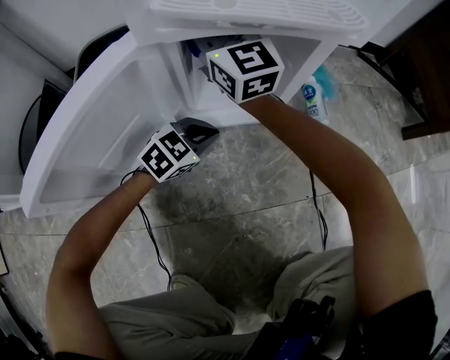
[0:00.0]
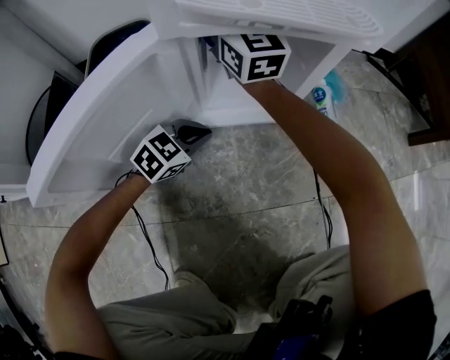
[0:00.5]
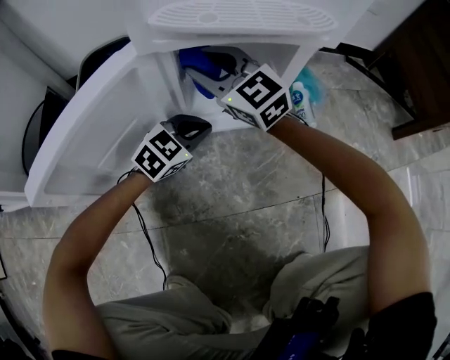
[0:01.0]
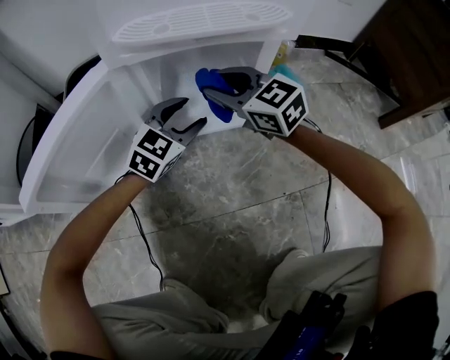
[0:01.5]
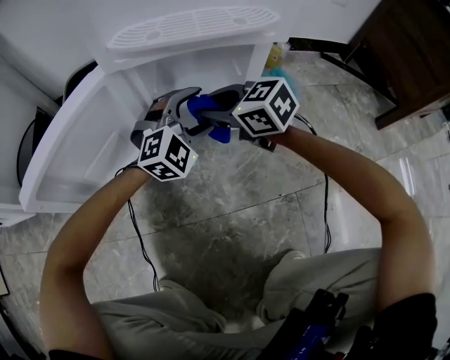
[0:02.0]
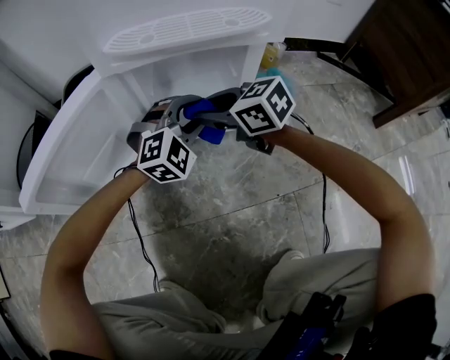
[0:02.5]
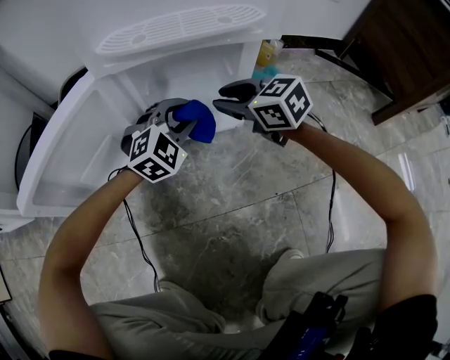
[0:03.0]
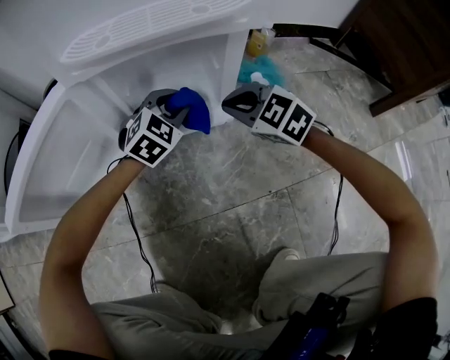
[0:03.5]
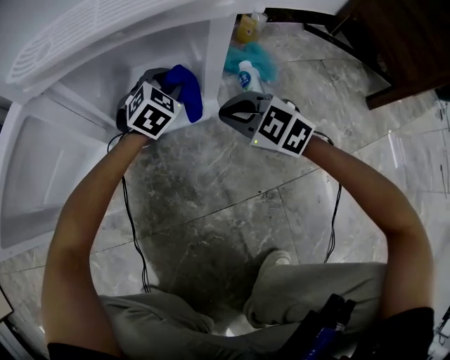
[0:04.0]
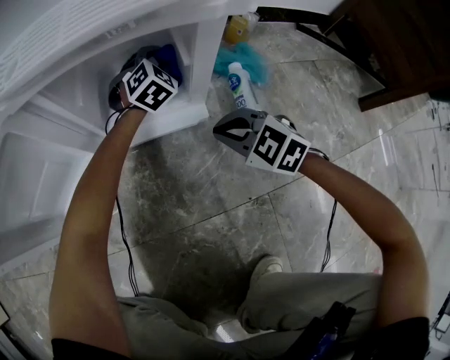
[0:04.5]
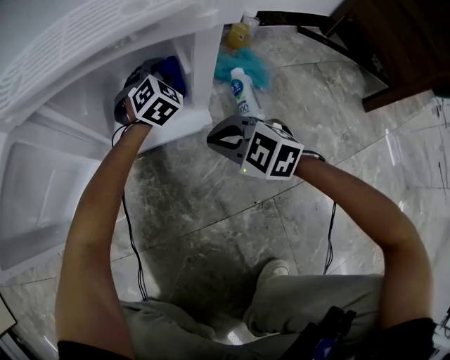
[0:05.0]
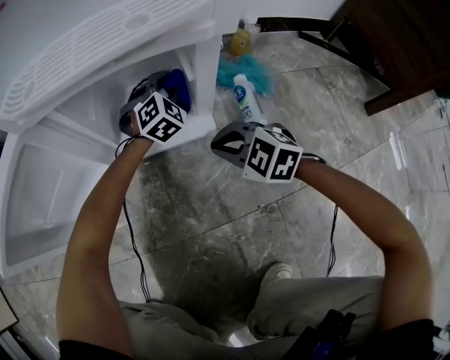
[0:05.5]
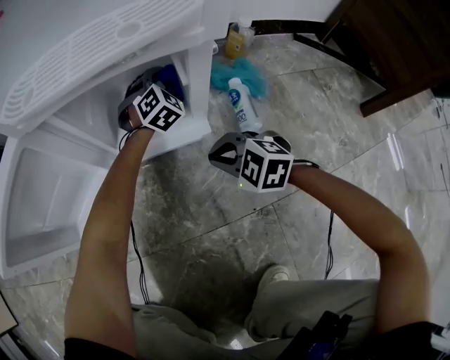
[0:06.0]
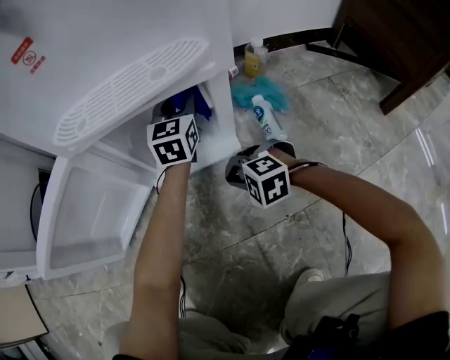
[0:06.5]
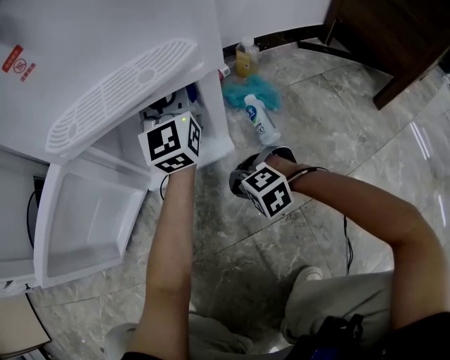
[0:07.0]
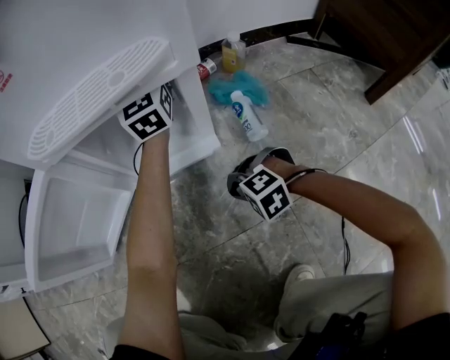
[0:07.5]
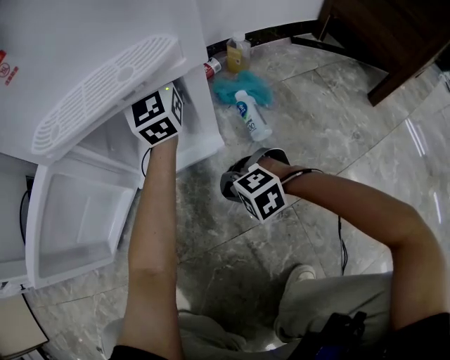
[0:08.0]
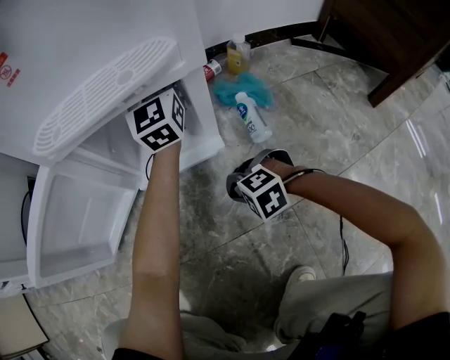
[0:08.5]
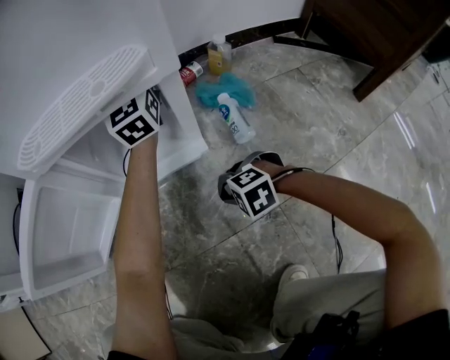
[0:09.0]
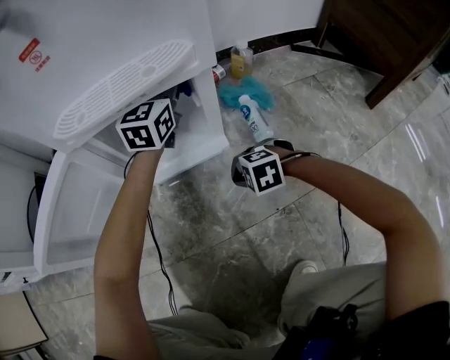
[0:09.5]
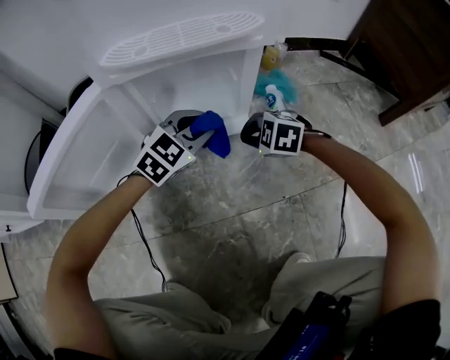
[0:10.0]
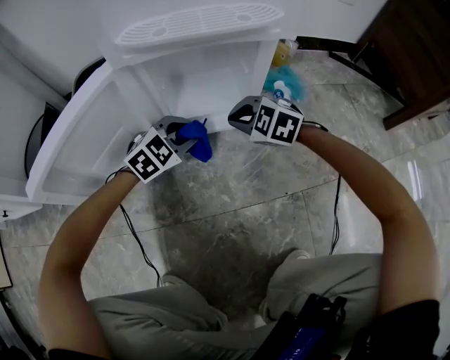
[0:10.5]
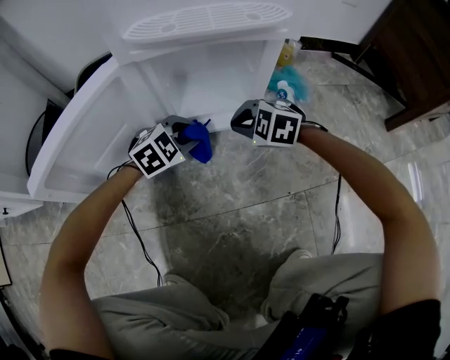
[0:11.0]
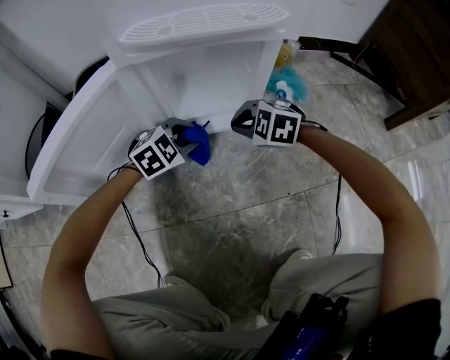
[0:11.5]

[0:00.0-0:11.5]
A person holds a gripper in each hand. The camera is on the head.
0:00.0 to 0:02.0: The right gripper changes place by some 20 cm, and tips its fingers downward by about 40 degrees. The left gripper heads upward, covering some 10 cm, rotates approximately 40 degrees, and opens up.
0:02.0 to 0:04.0: The left gripper goes about 15 cm forward, downward and to the right, swivels roughly 30 degrees, and closes its fingers; the right gripper moves to the right and downward, approximately 15 cm, swivels about 30 degrees, and closes its fingers.
0:04.0 to 0:06.0: The right gripper moves about 5 cm, while the left gripper travels forward by some 10 cm.
0:06.0 to 0:07.5: The right gripper shifts some 5 cm backward, and turns by approximately 30 degrees. Meanwhile the left gripper travels upward by about 25 cm, and tilts its fingers approximately 40 degrees upward.
0:07.5 to 0:09.5: The left gripper heads backward, covering roughly 5 cm, and rotates approximately 30 degrees.
0:09.5 to 0:11.5: The left gripper shifts approximately 30 cm downward, backward and to the left, and angles its fingers downward, by some 40 degrees, while the right gripper shifts approximately 10 cm forward, to the left and upward.

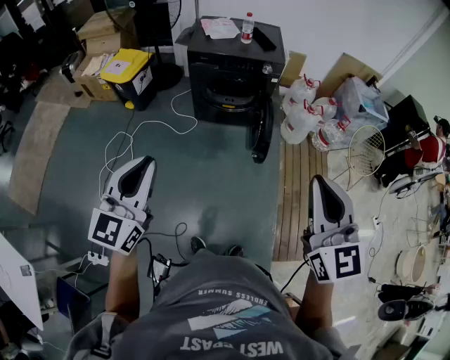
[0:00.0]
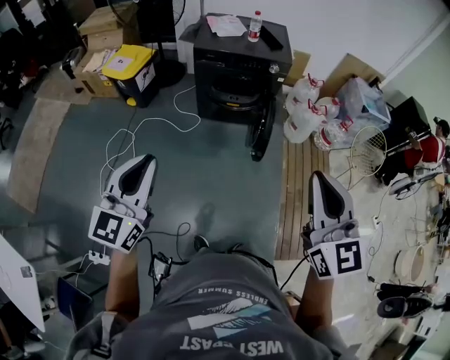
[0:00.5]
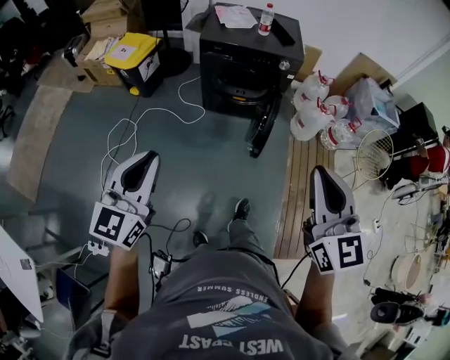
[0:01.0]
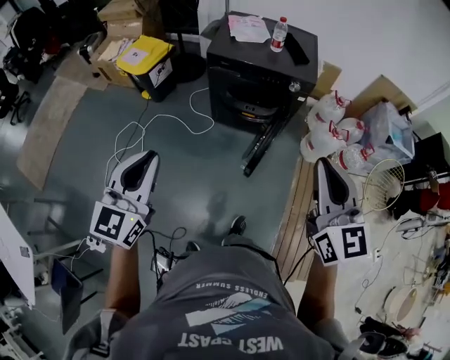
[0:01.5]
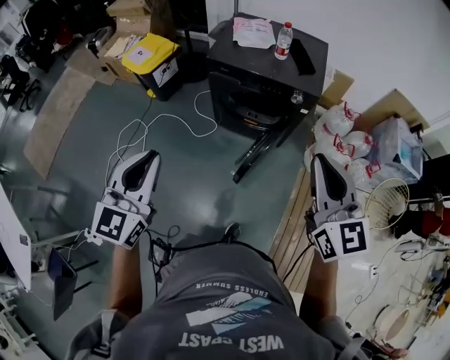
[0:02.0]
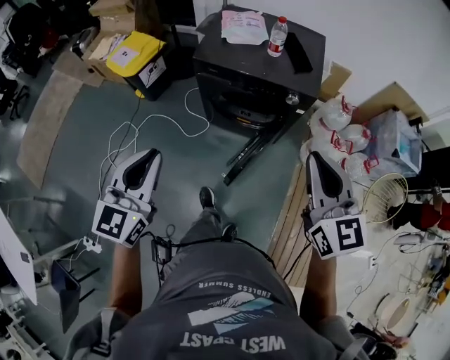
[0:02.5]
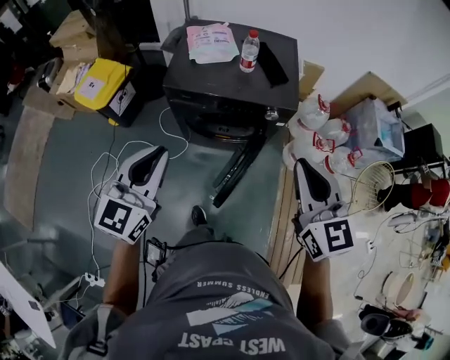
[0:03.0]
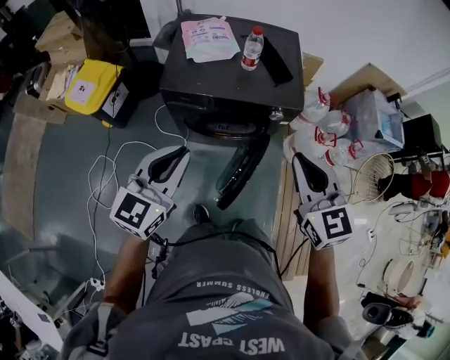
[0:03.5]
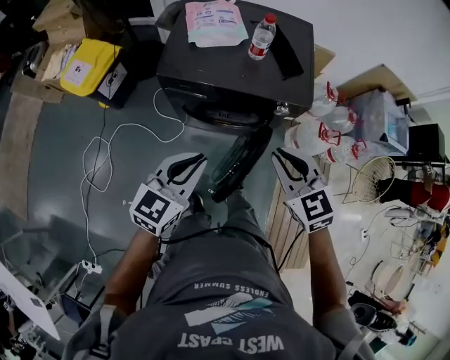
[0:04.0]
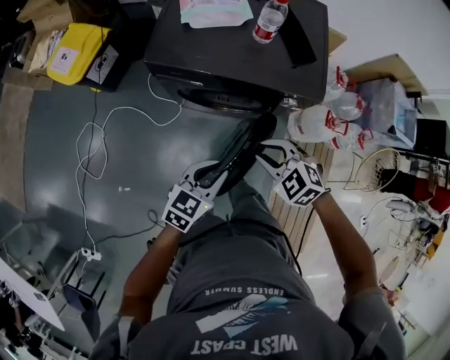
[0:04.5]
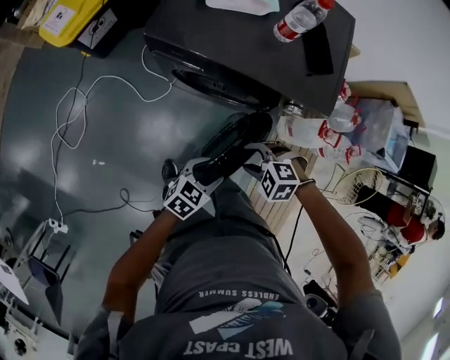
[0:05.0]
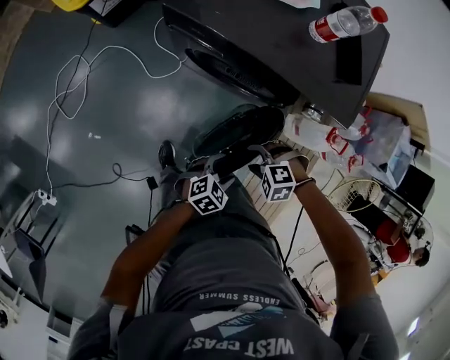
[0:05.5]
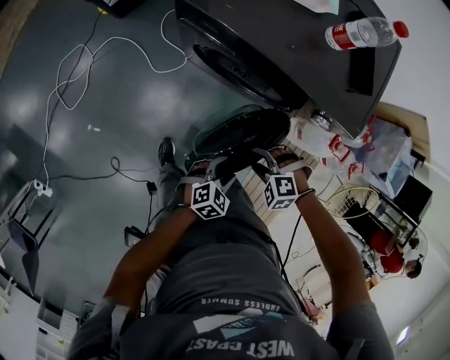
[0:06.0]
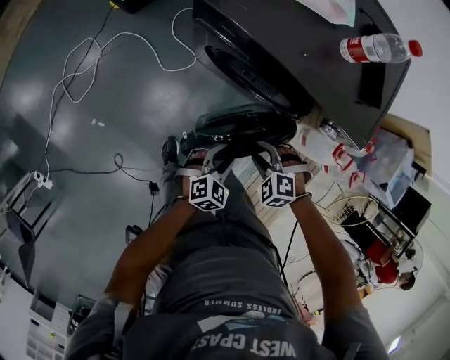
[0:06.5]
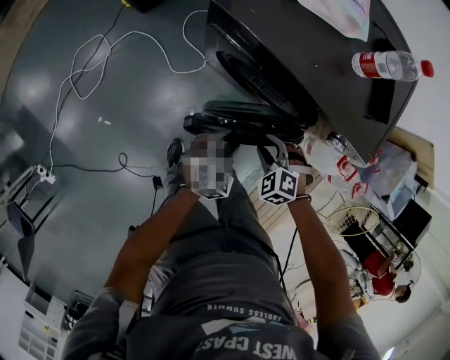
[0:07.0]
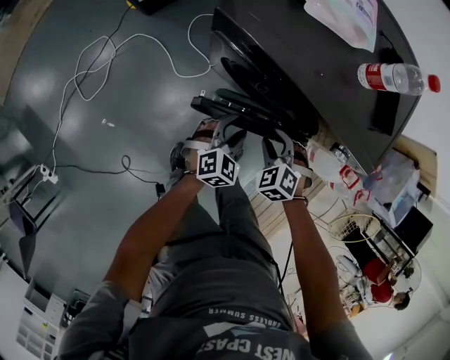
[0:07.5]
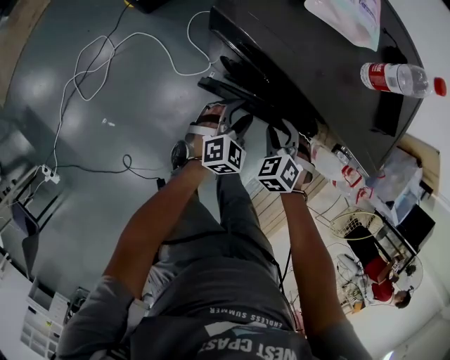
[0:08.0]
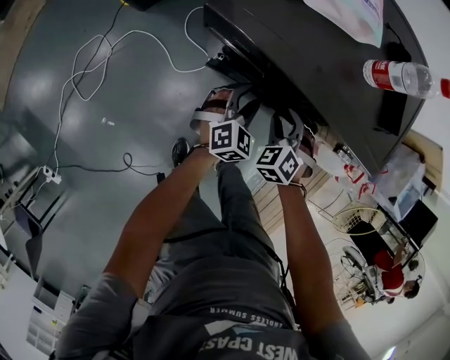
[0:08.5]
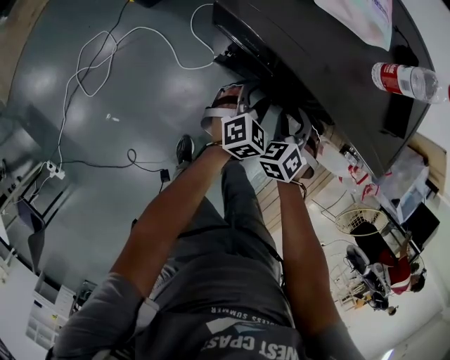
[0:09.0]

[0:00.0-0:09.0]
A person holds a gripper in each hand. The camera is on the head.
0:00.0 to 0:02.0: The left gripper goes some 20 cm forward; the right gripper moves forward, roughly 35 cm.
0:02.0 to 0:04.5: The right gripper heads downward and forward, covering about 40 cm, and tips its fingers downward by roughly 50 degrees. The left gripper moves downward, forward and to the right, roughly 40 cm, and swivels roughly 50 degrees.
0:04.5 to 0:07.0: The grippers both shift downward by about 20 cm. The left gripper turns by approximately 30 degrees, and opens, while the right gripper swivels some 30 degrees.
0:07.0 to 0:09.0: Both grippers travel together forward, roughly 15 cm. The right gripper rotates about 40 degrees.

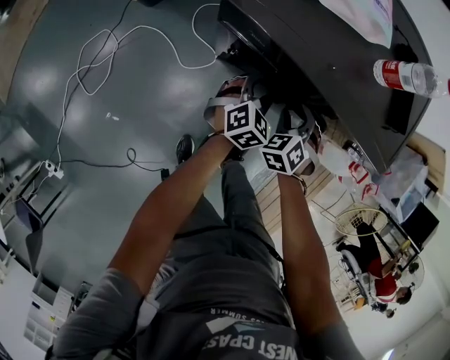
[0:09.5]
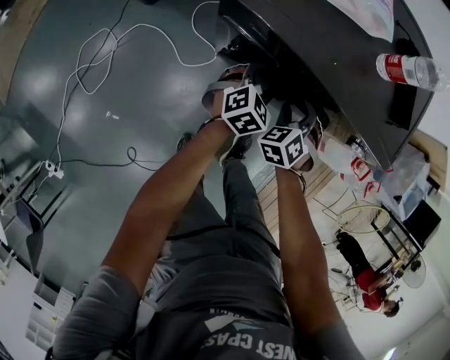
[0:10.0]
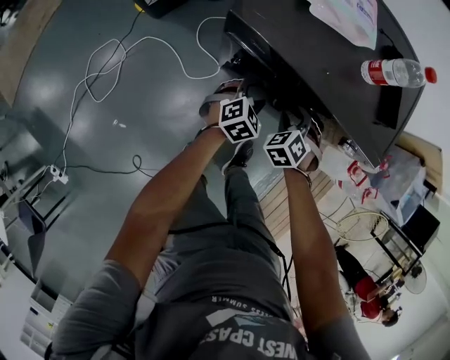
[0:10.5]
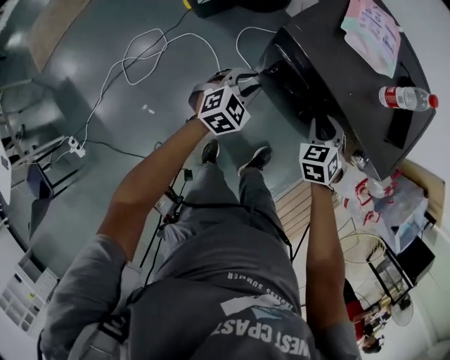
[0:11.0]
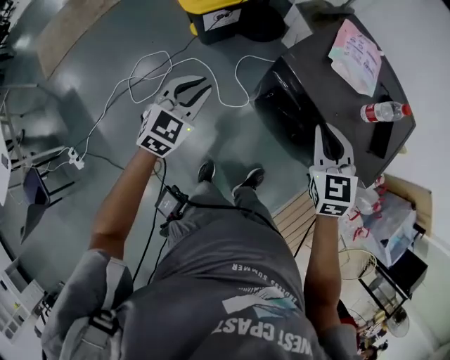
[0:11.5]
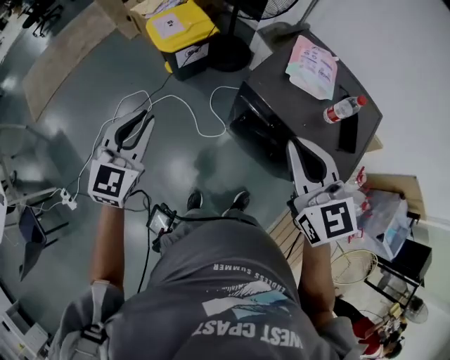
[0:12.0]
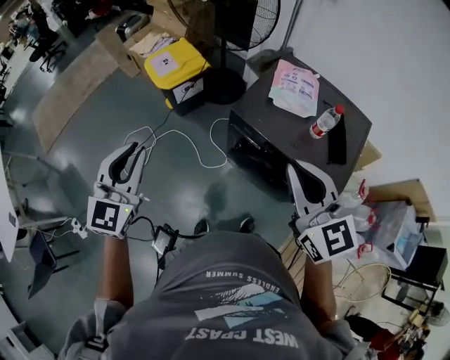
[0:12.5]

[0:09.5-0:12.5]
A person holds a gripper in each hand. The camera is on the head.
0:09.5 to 0:11.0: The right gripper goes some 10 cm upward, while the left gripper goes approximately 20 cm to the left, upward and backward, and closes its fingers.
0:11.0 to 0:12.5: Both grippers travel together upward, some 35 cm. The right gripper points its fingers some 40 degrees further upward, and closes its fingers, while the left gripper tilts its fingers some 30 degrees upward.

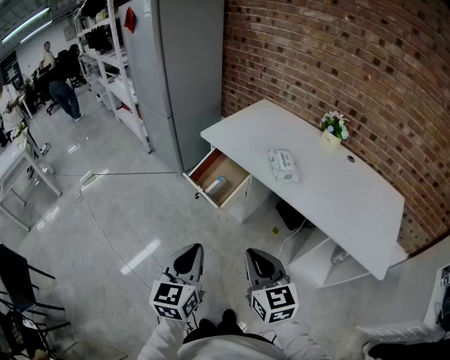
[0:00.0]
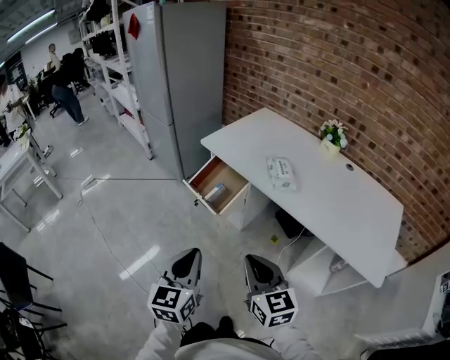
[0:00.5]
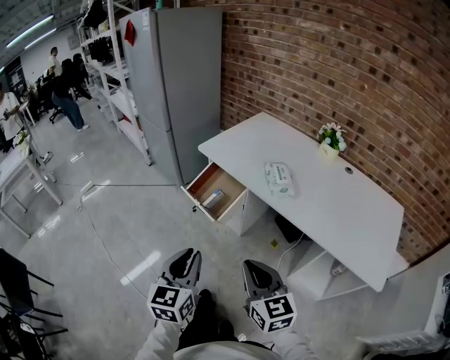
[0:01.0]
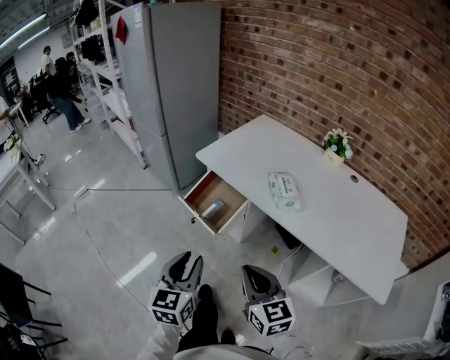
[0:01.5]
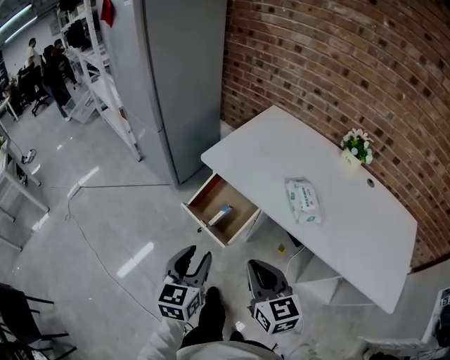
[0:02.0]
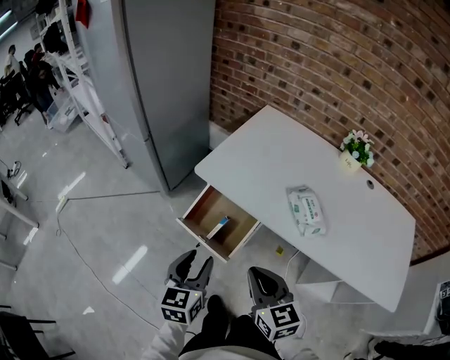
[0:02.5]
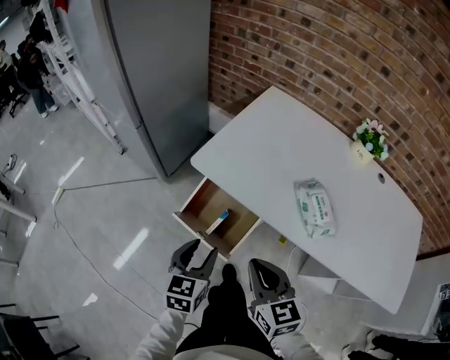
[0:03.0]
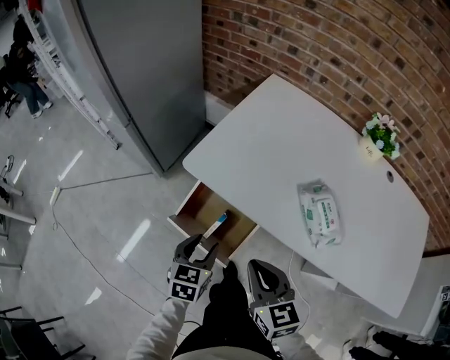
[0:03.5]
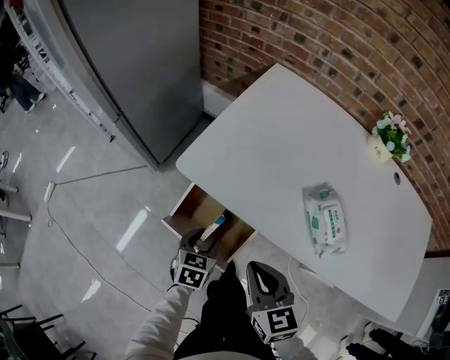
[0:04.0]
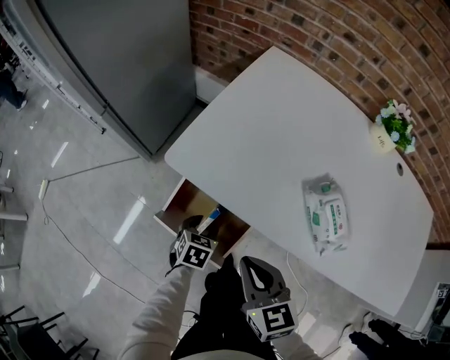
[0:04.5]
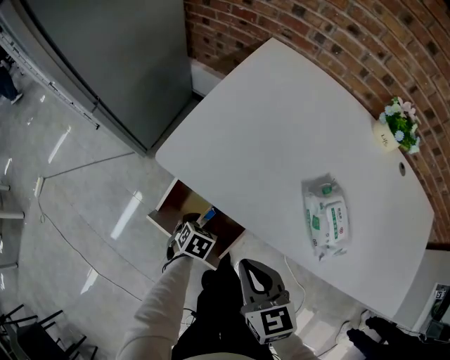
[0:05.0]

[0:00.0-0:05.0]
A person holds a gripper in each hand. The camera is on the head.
0:00.0 to 0:02.5: The two grippers go some 30 cm forward. The left gripper opens.
0:02.5 to 0:05.0: The right gripper is displaced forward and downward by approximately 20 cm, while the left gripper shifts about 40 cm downward and forward, and angles its fingers downward, by roughly 40 degrees.
